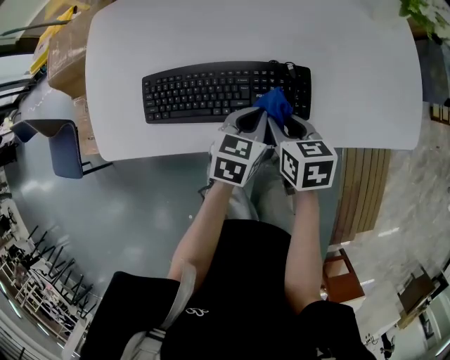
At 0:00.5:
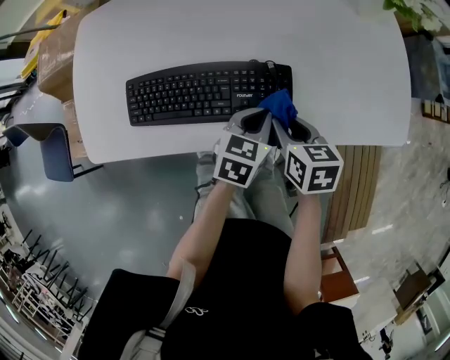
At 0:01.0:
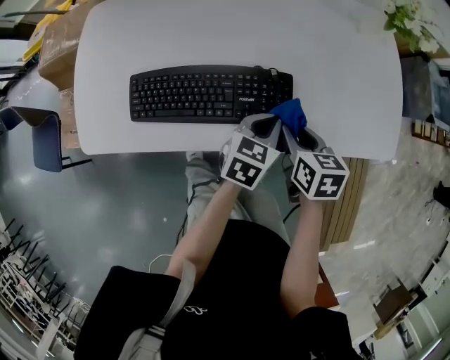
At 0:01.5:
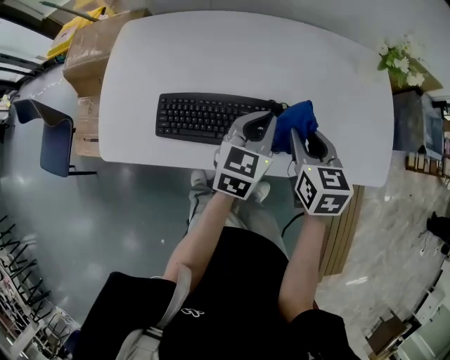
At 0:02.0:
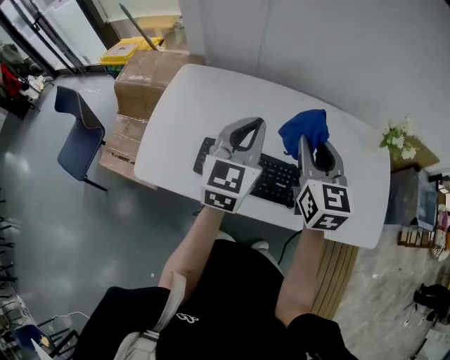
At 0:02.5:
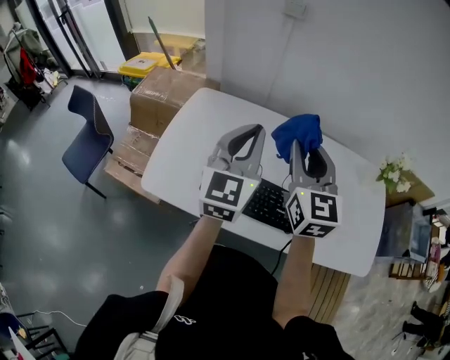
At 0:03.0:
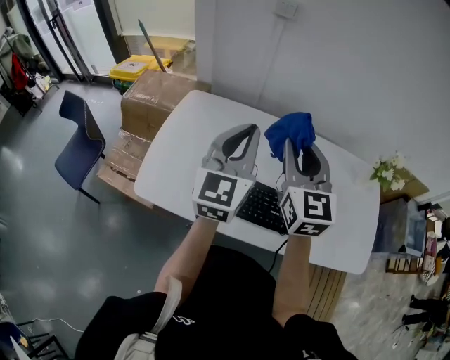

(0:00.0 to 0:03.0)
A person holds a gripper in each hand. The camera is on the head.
0:00.0 - 0:01.5: The grippers both shift upward by about 15 cm. The right gripper rotates some 20 degrees. The left gripper changes its angle by some 20 degrees.
0:01.5 - 0:03.0: Both grippers travel together upward and to the left, some 30 cm. The right gripper angles its fingers upward, by some 30 degrees; the left gripper swivels approximately 40 degrees.

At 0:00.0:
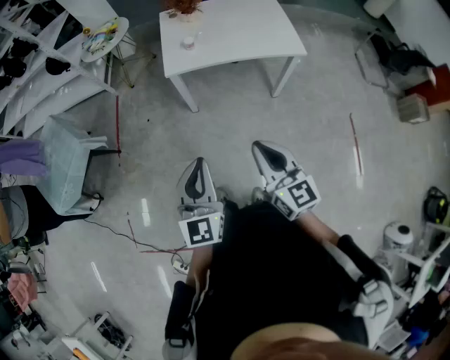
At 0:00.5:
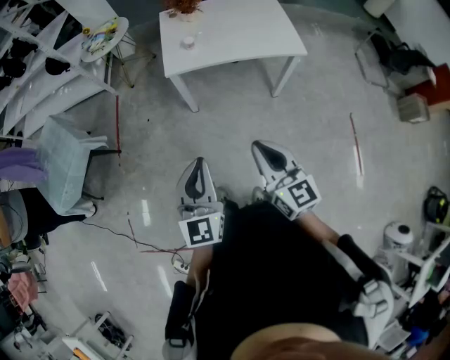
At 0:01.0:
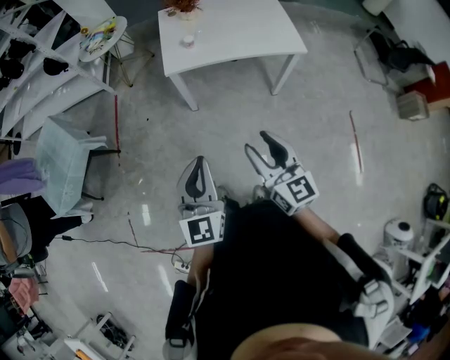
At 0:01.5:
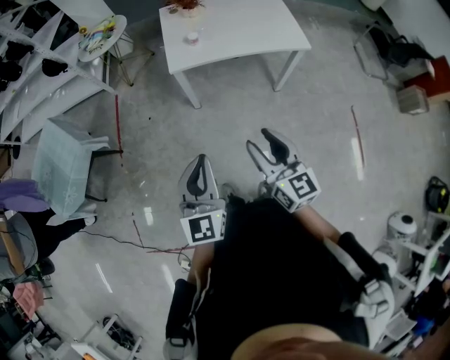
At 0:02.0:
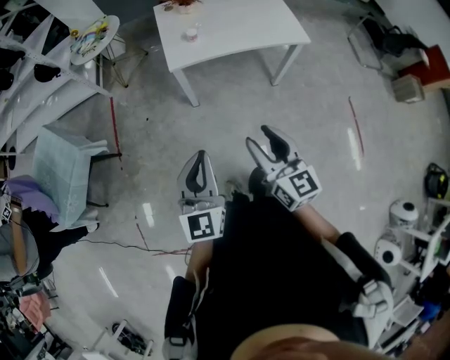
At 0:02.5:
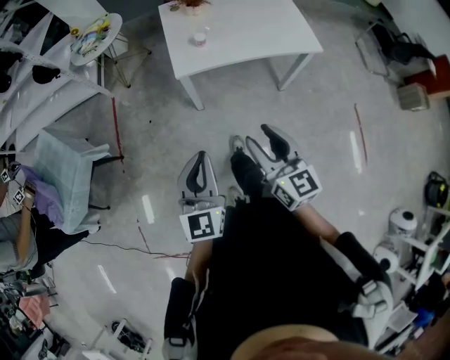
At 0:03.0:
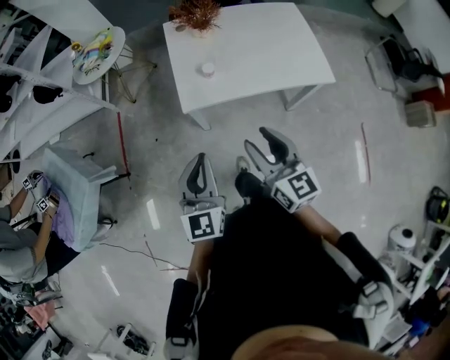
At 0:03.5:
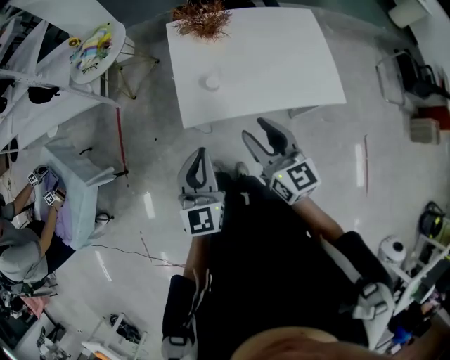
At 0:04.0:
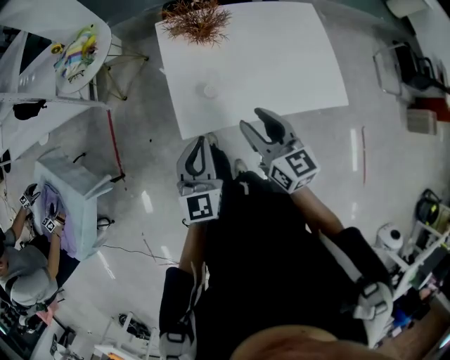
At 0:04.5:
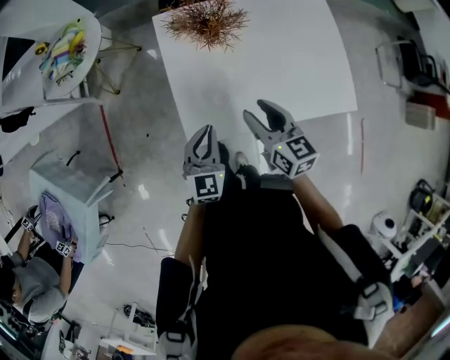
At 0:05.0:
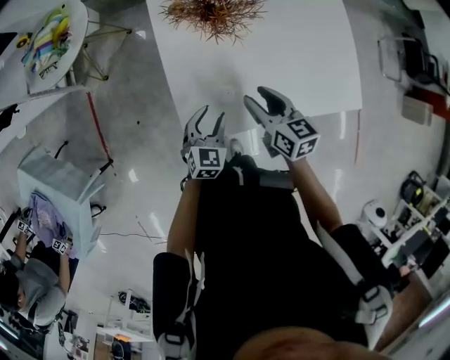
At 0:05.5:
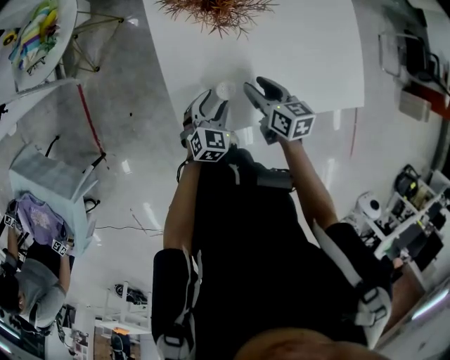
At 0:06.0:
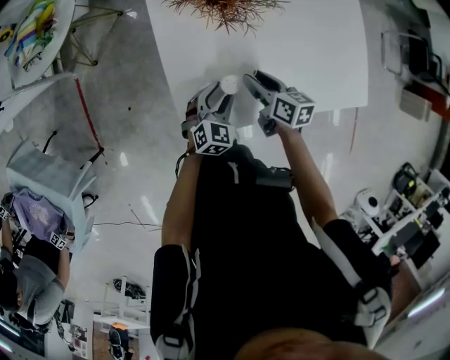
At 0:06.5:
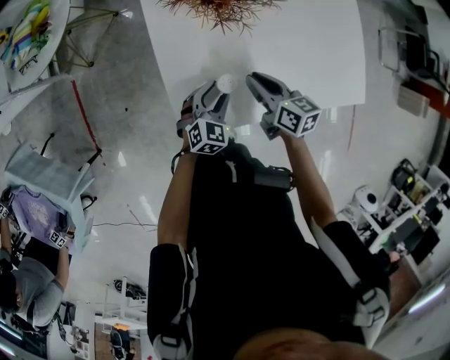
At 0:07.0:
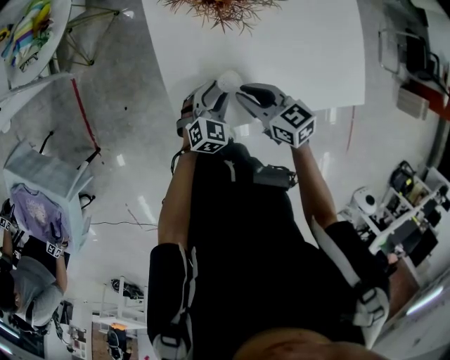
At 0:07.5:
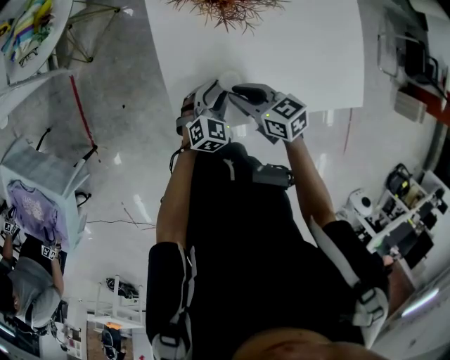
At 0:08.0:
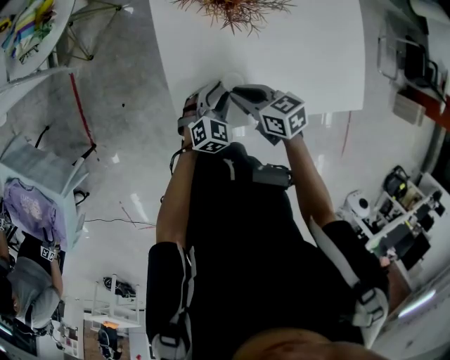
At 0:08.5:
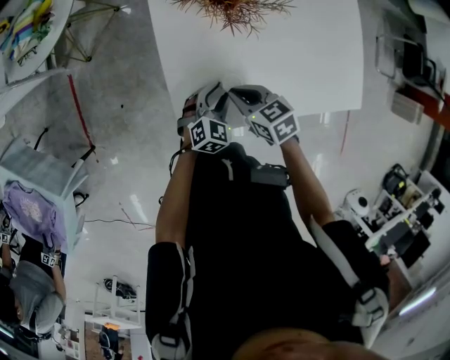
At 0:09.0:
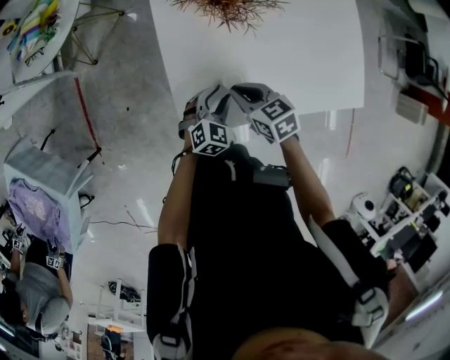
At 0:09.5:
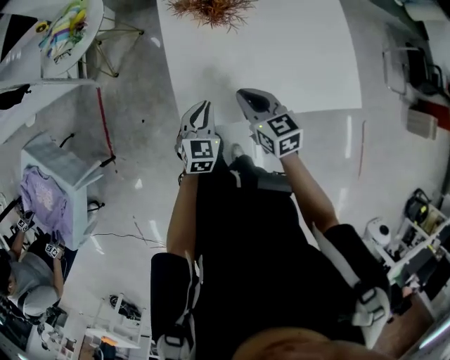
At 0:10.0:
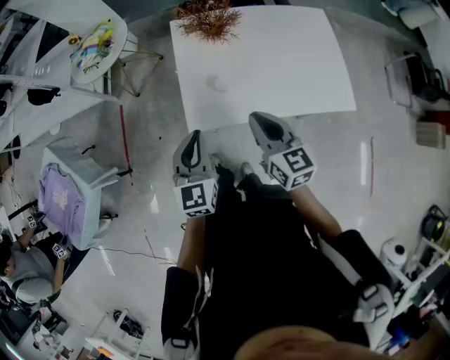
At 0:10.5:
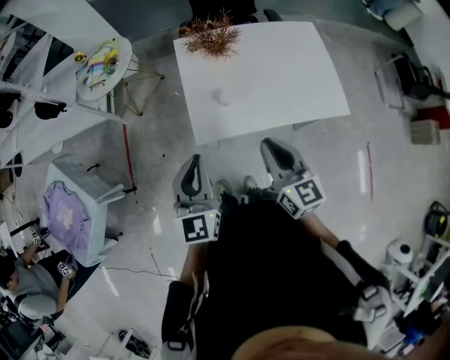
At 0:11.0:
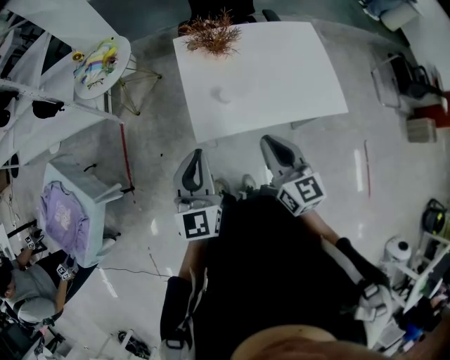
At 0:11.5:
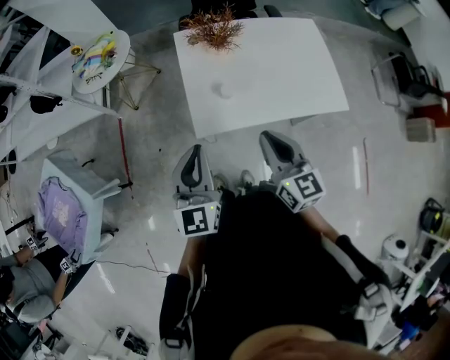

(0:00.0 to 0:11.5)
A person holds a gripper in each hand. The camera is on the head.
0:00.0 - 0:02.0: Both grippers travel together to the left, roughly 10 cm. The right gripper opens its fingers.
0:02.0 - 0:04.0: Both grippers are carried forward, some 50 cm.
0:04.0 - 0:06.0: The grippers both shift downward and forward by approximately 35 cm. The right gripper rotates approximately 40 degrees. The left gripper rotates roughly 40 degrees, and opens its fingers.
0:06.0 - 0:07.5: The right gripper moves to the left, approximately 5 cm, rotates approximately 30 degrees, and closes up.
0:07.5 - 0:09.5: The right gripper moves upward, approximately 10 cm, and swivels roughly 20 degrees. The left gripper is displaced upward, backward and to the left by approximately 15 cm, changes its angle by approximately 20 degrees, and closes.
0:09.5 - 0:11.5: The grippers both shift upward and backward by about 30 cm. The right gripper turns by some 20 degrees; the left gripper rotates roughly 30 degrees.

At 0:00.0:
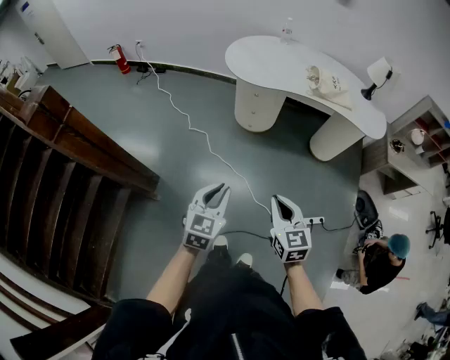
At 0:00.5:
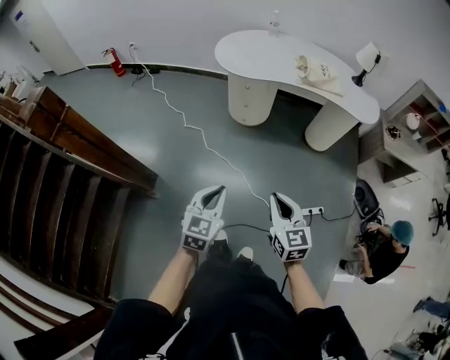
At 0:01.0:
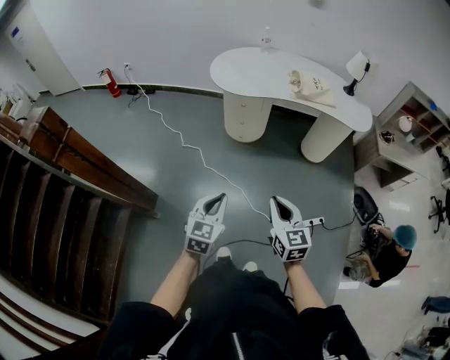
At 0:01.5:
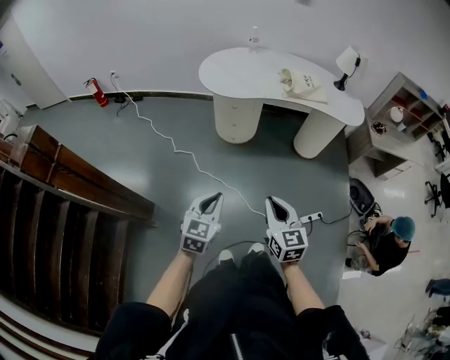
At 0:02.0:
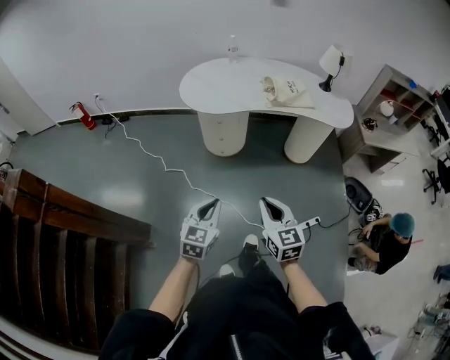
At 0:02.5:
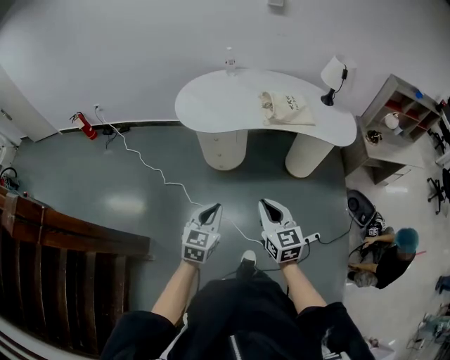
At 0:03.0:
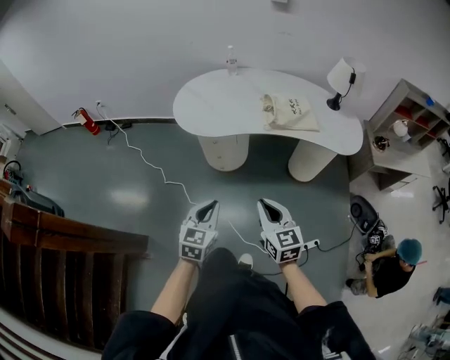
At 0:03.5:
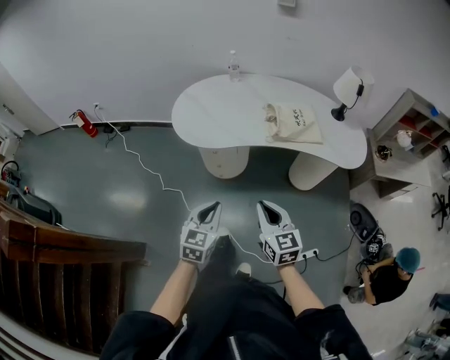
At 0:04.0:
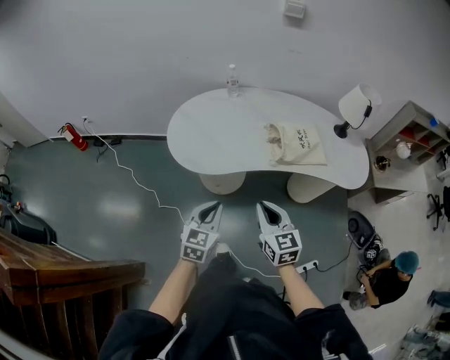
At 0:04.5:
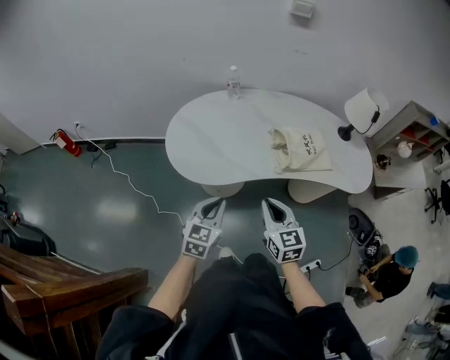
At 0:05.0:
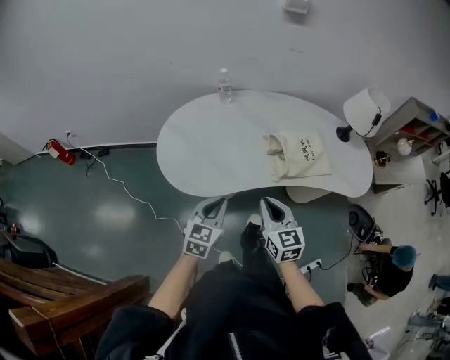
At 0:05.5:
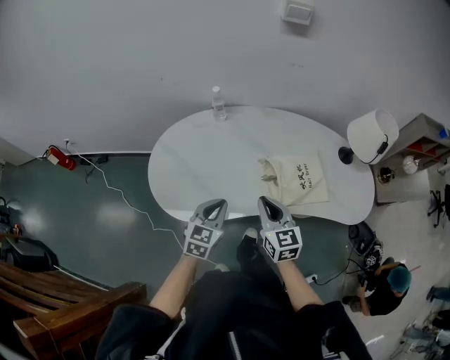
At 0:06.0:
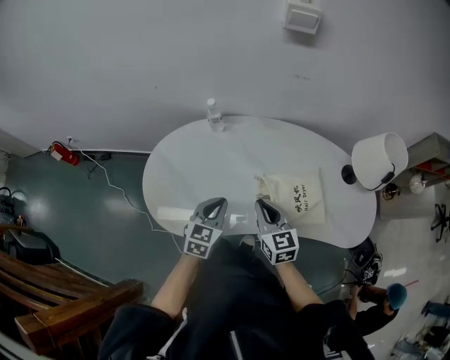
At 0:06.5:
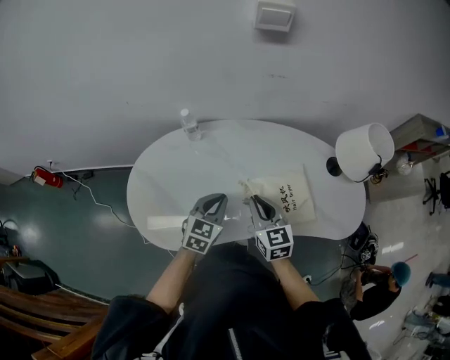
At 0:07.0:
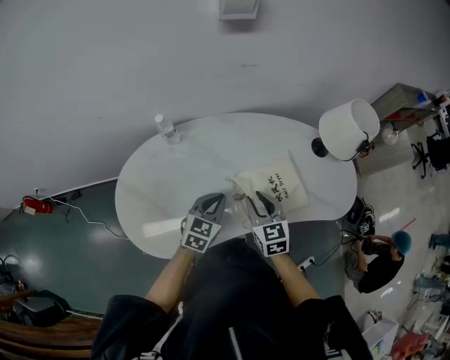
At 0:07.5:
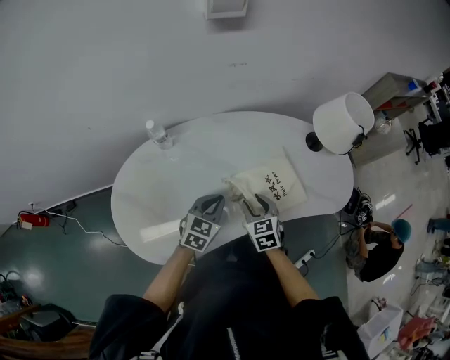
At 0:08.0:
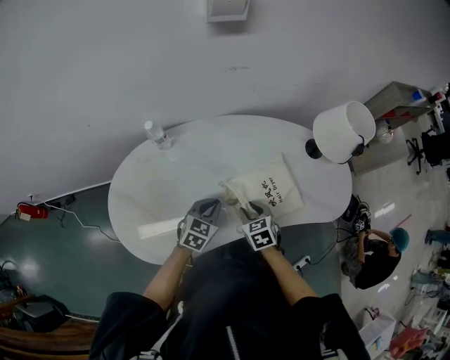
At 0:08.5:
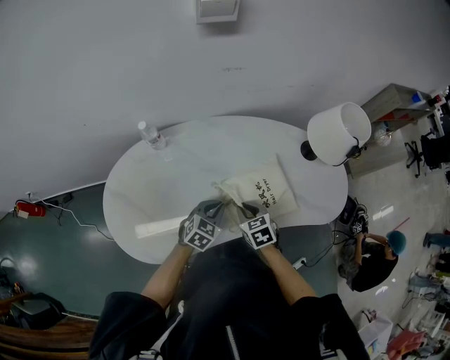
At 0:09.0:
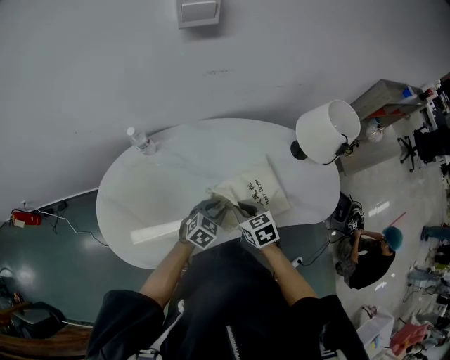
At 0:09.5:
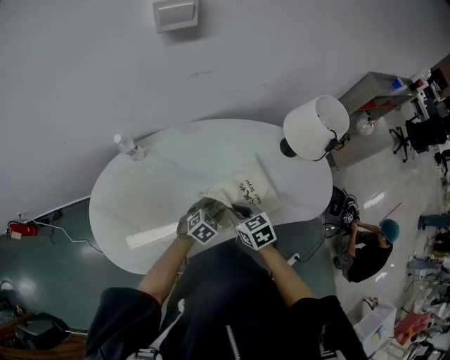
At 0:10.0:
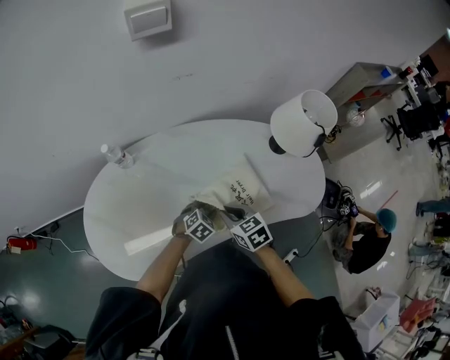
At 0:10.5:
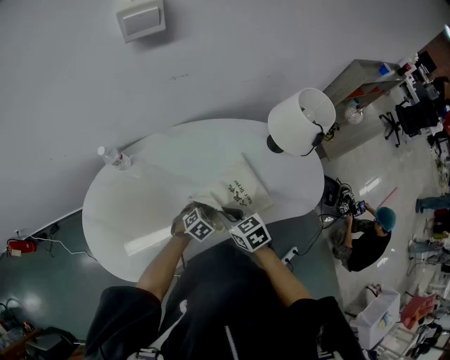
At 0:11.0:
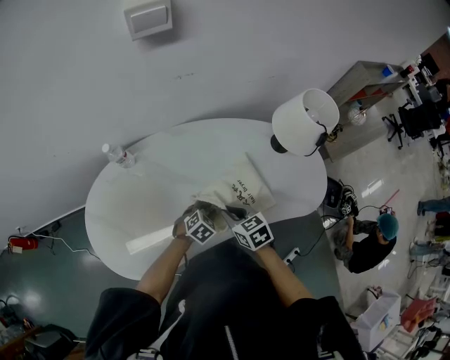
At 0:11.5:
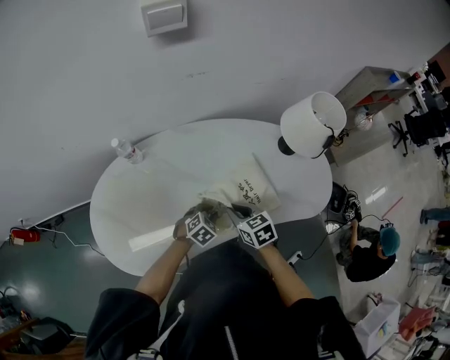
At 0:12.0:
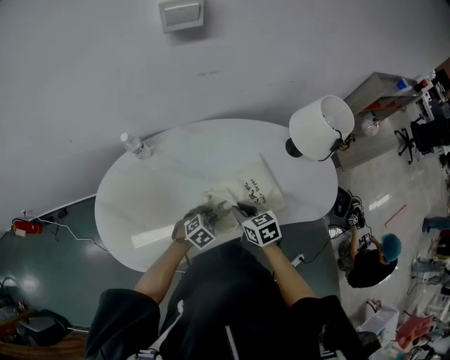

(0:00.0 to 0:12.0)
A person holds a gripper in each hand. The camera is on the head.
0:00.0 - 0:02.0: The grippers both shift forward by about 10 cm.
0:02.0 - 0:04.0: Both grippers travel together forward, some 35 cm.
0:04.0 - 0:06.0: The two grippers go roughly 35 cm forward.
0:06.0 - 0:08.0: The right gripper goes roughly 15 cm downward, angles its fingers downward, by about 30 degrees, and opens. The left gripper changes place by about 15 cm, and rotates some 30 degrees.
0:08.0 - 0:10.0: The left gripper goes approximately 15 cm to the right and downward, rotates some 30 degrees, and opens up. The right gripper ends up some 5 cm from where it was.
0:10.0 - 0:12.0: The left gripper changes place by roughly 5 cm.
